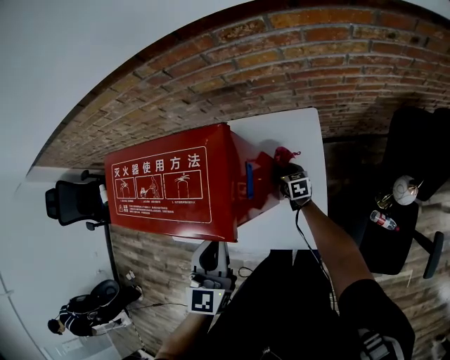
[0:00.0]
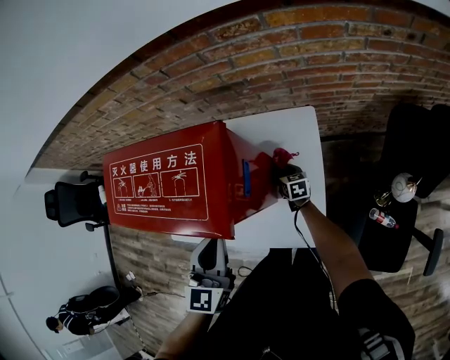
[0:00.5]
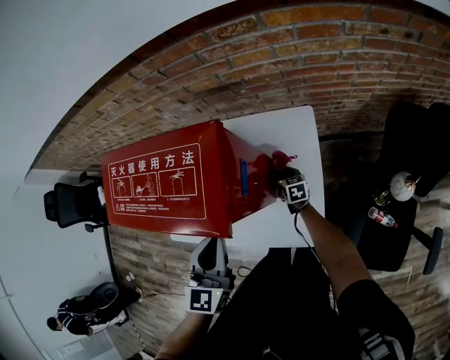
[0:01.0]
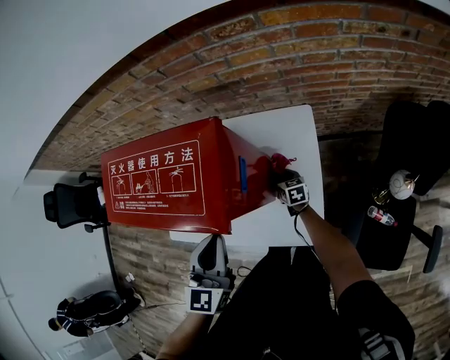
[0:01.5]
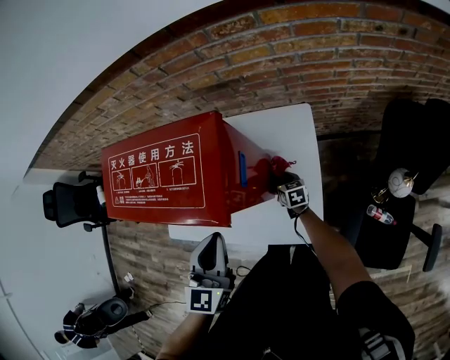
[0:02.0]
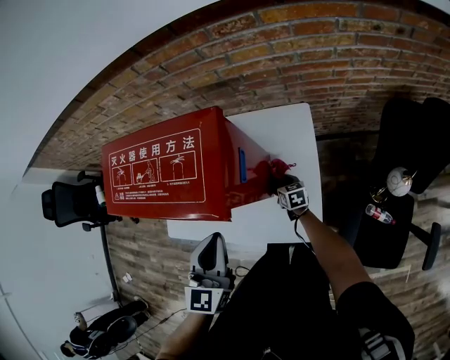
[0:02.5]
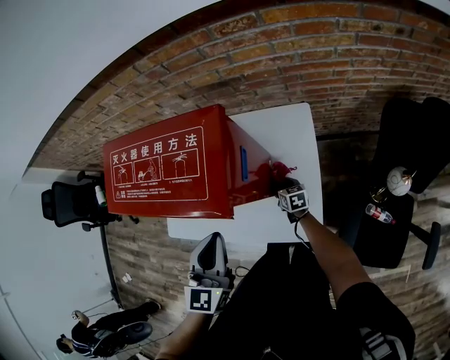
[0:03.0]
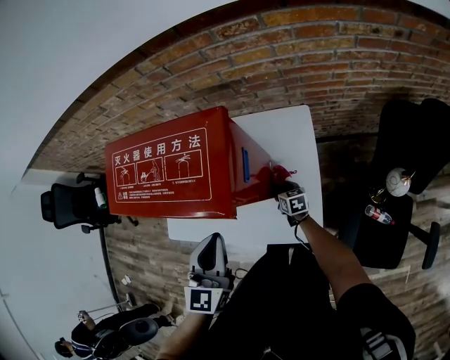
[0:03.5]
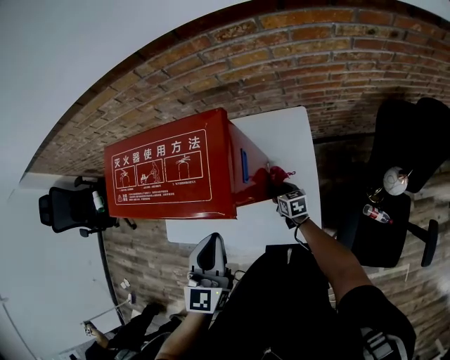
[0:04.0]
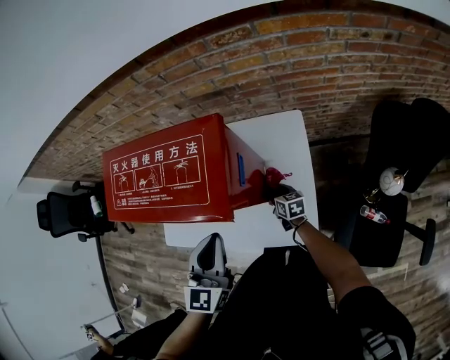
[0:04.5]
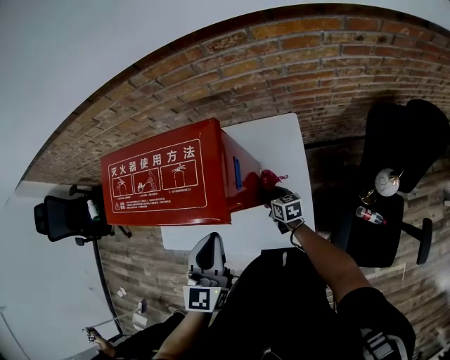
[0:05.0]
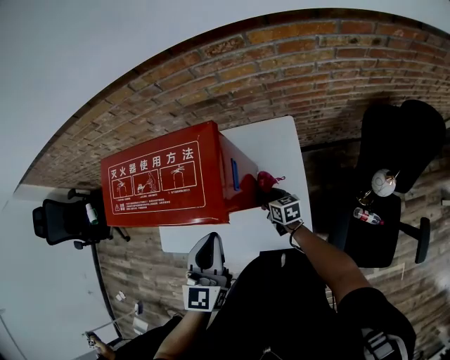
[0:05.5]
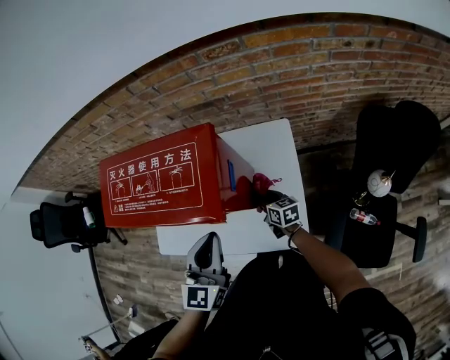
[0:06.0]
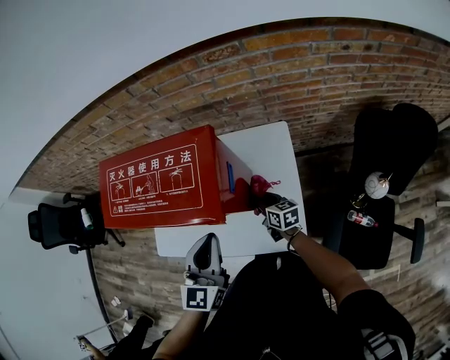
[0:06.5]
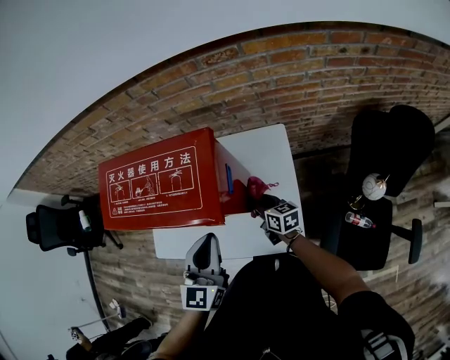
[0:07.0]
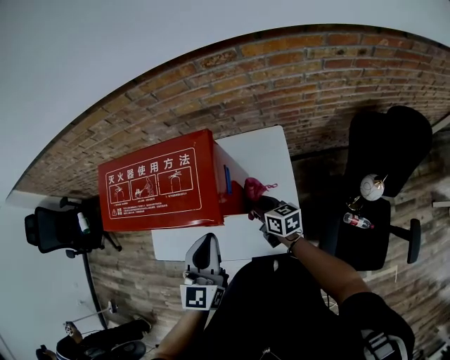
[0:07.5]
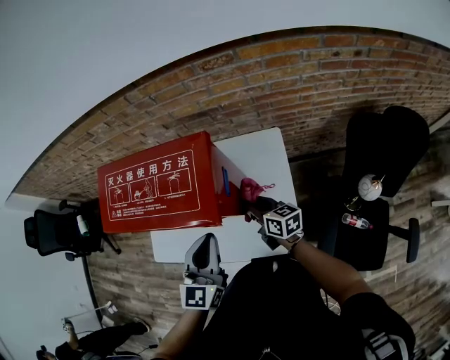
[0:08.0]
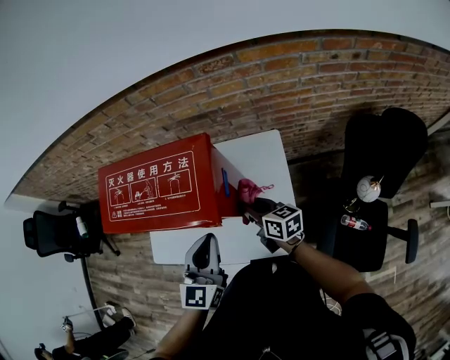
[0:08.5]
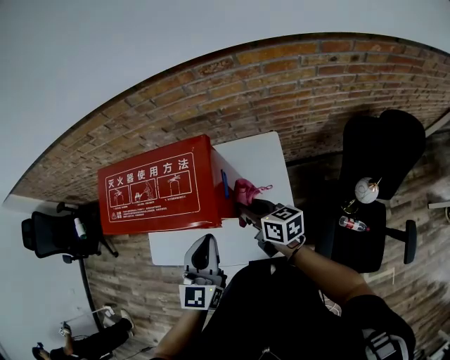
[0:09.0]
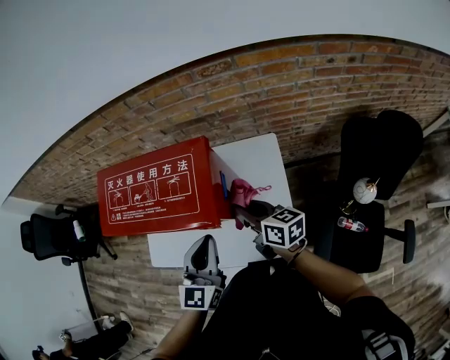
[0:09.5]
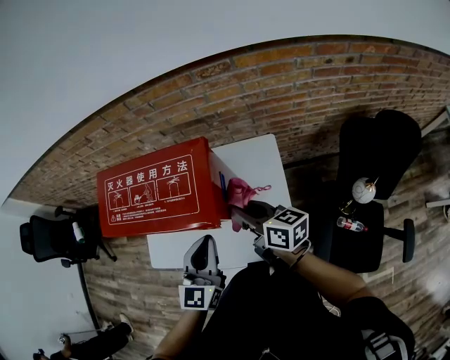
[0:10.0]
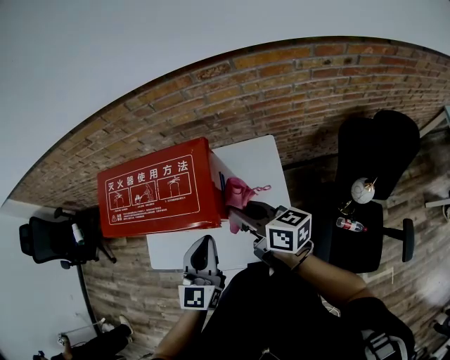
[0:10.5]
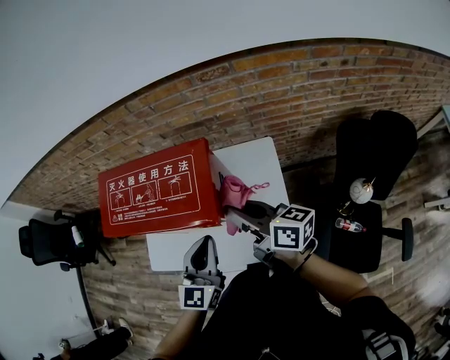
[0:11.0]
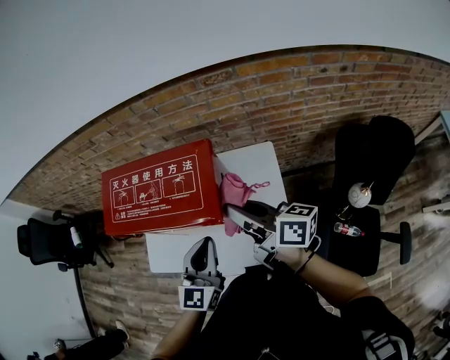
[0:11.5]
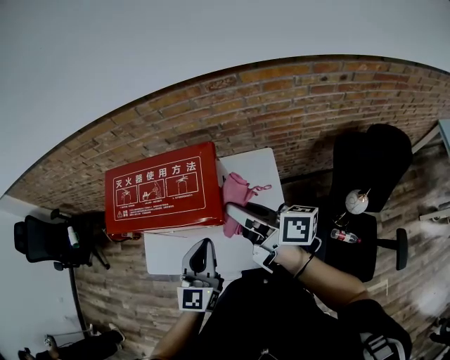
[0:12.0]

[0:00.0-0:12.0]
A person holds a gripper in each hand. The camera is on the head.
0:00.0 to 0:02.0: The right gripper moves backward, about 5 cm.
0:02.0 to 0:04.0: The grippers move only a little.
0:04.0 to 0:06.0: The right gripper is displaced upward by about 10 cm.
0:06.0 to 0:08.0: The right gripper is displaced upward by about 10 cm.
0:08.0 to 0:10.0: The right gripper is displaced upward by about 15 cm.
0:10.0 to 0:12.0: The right gripper shifts some 10 cm upward, and changes its angle by about 20 degrees.

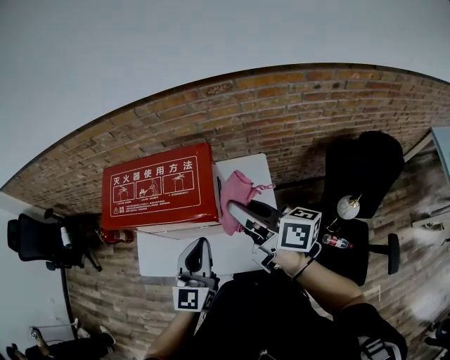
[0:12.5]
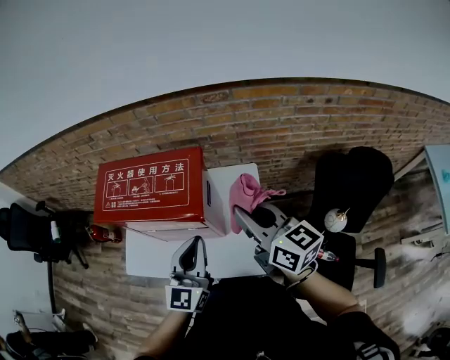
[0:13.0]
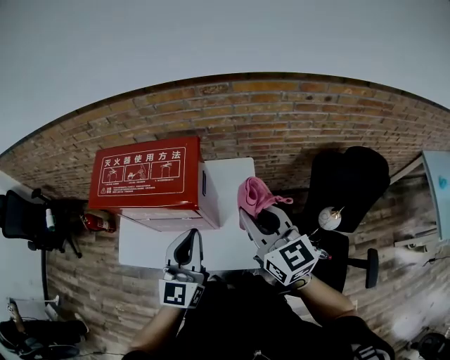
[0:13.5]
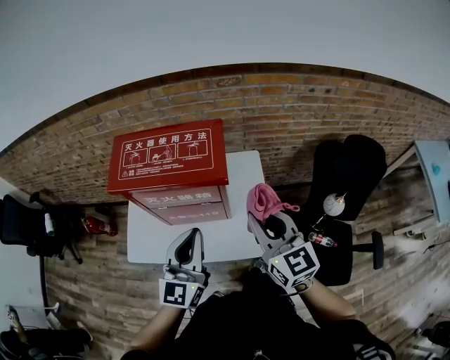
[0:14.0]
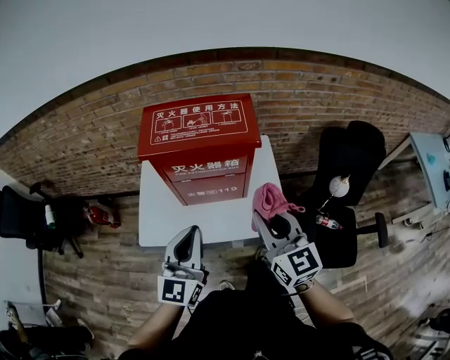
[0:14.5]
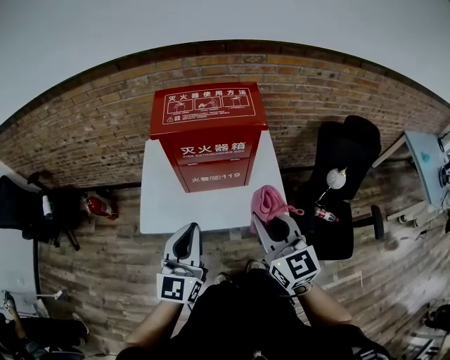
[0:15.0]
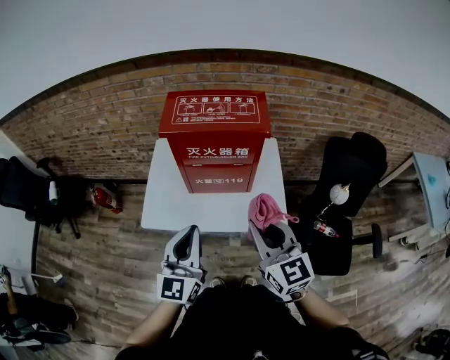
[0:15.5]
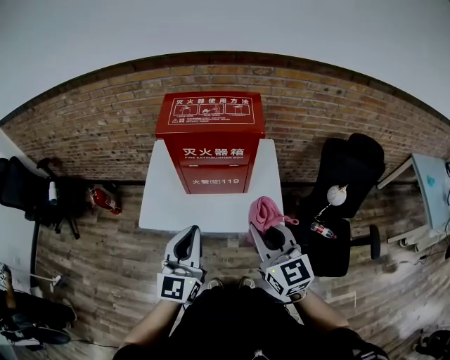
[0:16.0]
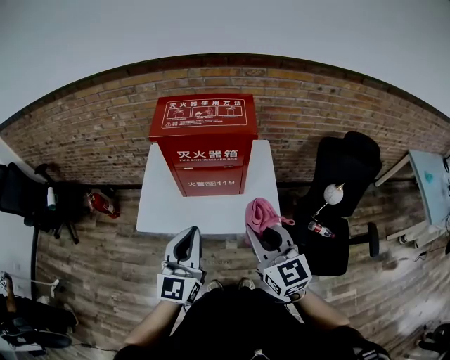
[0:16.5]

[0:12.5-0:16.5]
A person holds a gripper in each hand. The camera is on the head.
0:12.5 to 0:14.5: The right gripper travels backward and to the left by roughly 25 cm, and rolls counterclockwise, seen from behind, by roughly 50 degrees. Meanwhile the left gripper heads to the left and backward, covering some 20 cm.
0:14.5 to 0:16.5: Both grippers travel together backward, about 10 cm.

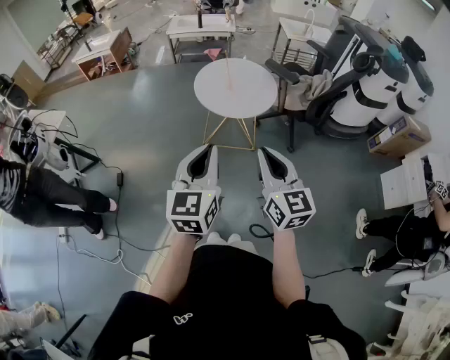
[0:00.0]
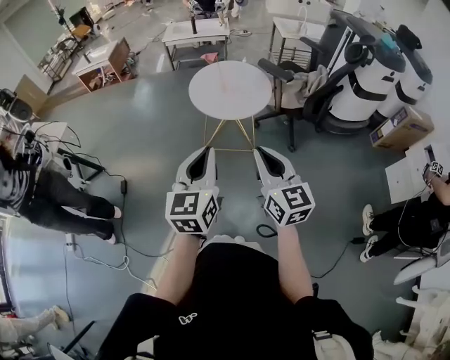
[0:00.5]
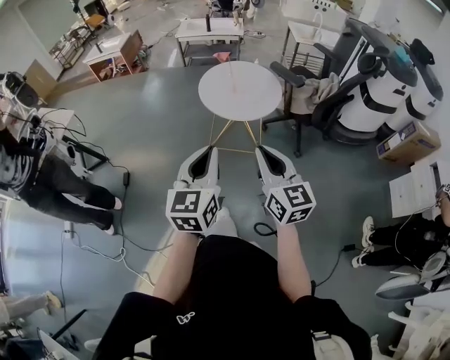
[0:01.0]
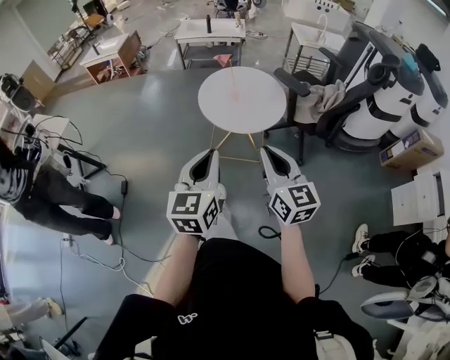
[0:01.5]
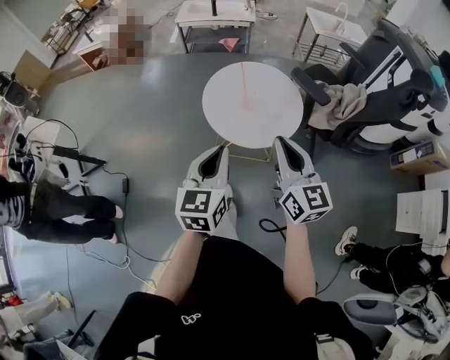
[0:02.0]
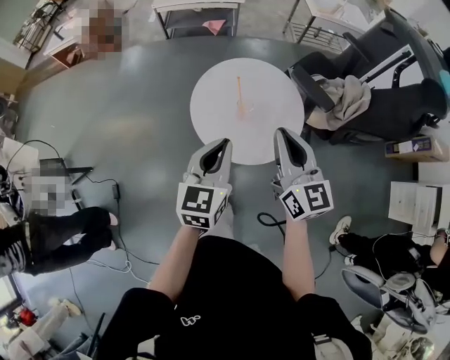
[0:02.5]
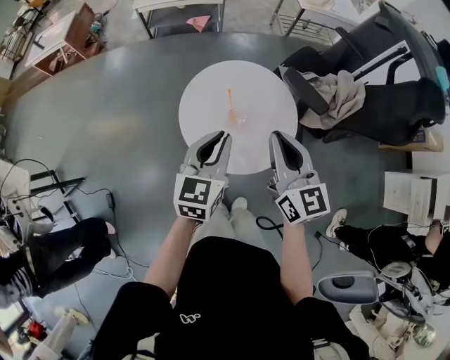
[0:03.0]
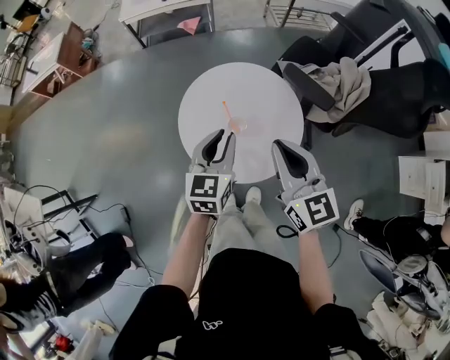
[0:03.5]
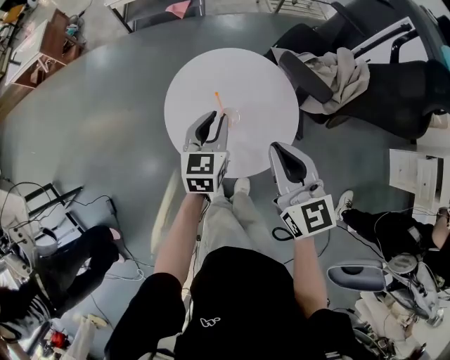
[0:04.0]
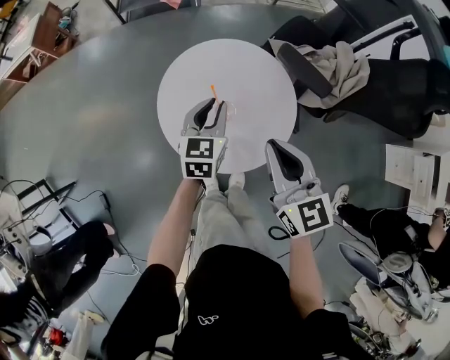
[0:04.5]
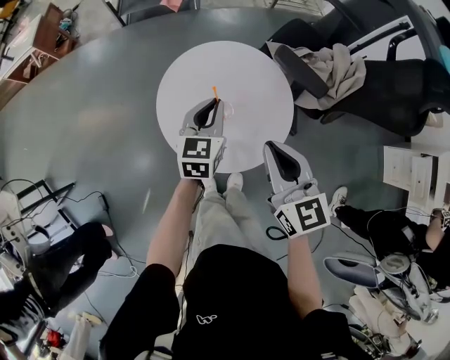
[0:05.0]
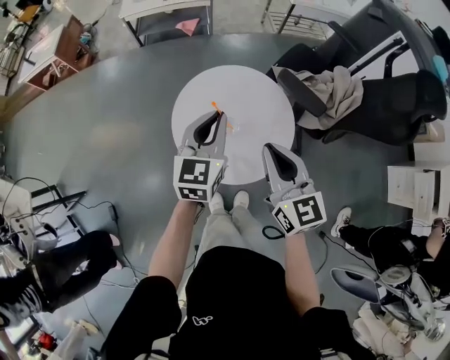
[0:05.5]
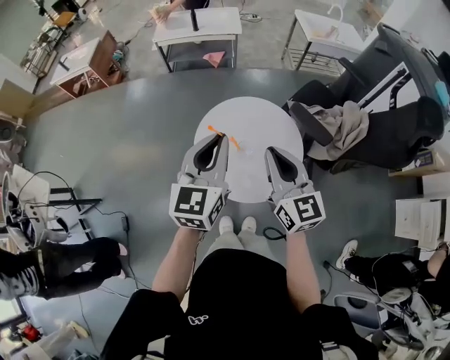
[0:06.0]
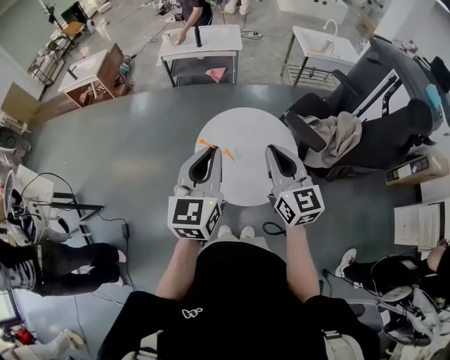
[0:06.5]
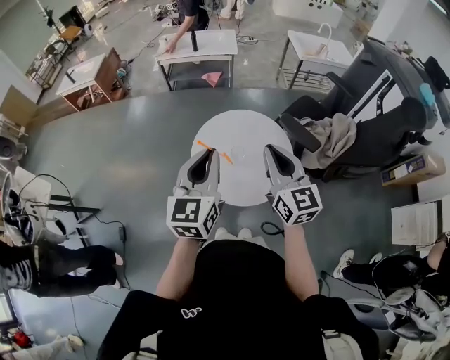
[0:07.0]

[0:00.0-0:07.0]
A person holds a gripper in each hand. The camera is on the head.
0:00.0 to 0:02.0: Both grippers travel together forward, approximately 25 cm.
0:02.0 to 0:03.5: The grippers both shift forward by roughly 25 cm. The left gripper opens.
0:03.5 to 0:05.0: The left gripper is displaced downward and forward by some 10 cm.
0:05.0 to 0:07.0: The left gripper travels upward and backward by approximately 25 cm, and changes its angle by roughly 20 degrees; the right gripper heads upward, covering approximately 10 cm.

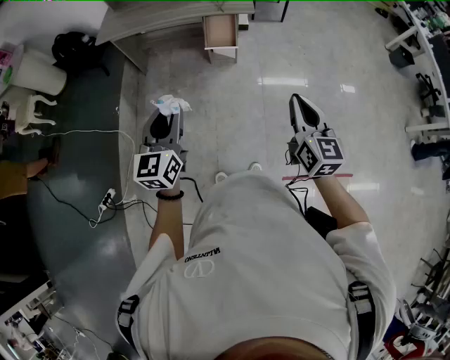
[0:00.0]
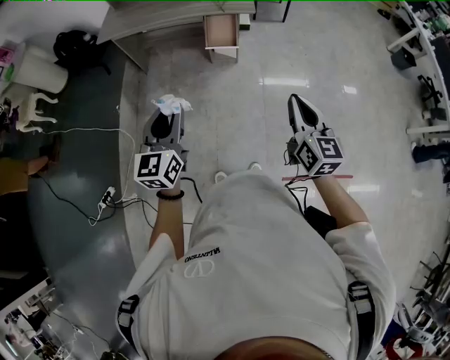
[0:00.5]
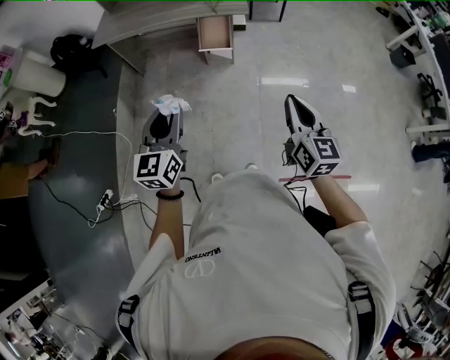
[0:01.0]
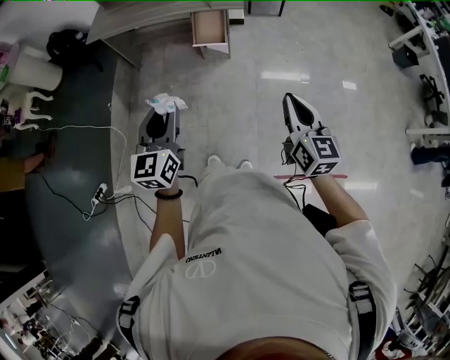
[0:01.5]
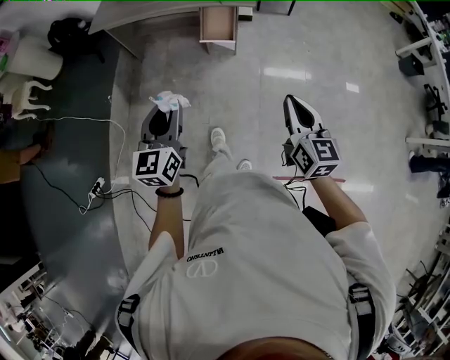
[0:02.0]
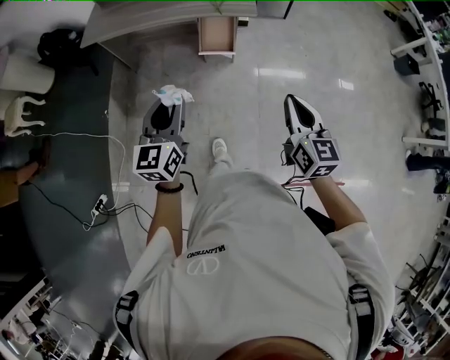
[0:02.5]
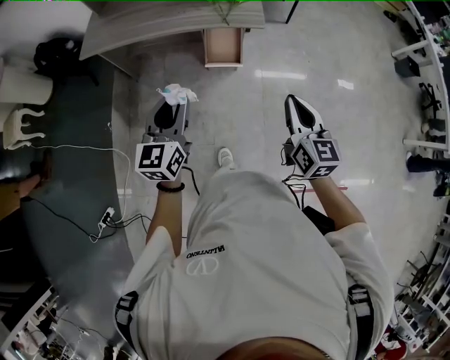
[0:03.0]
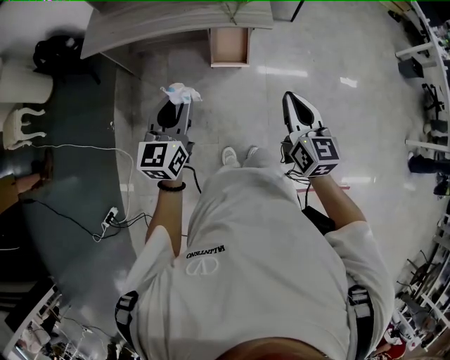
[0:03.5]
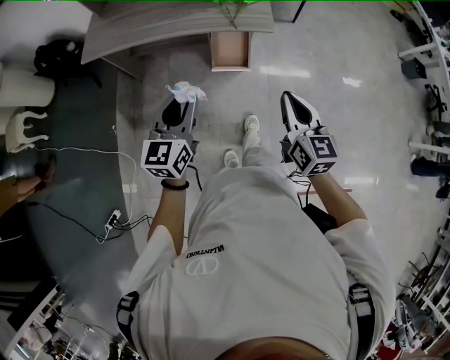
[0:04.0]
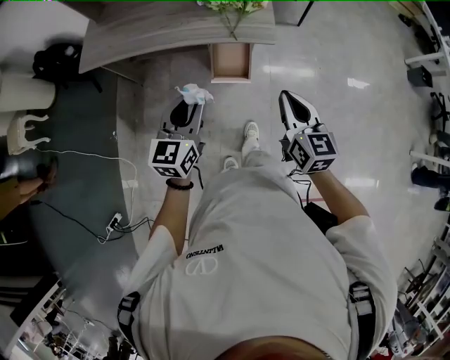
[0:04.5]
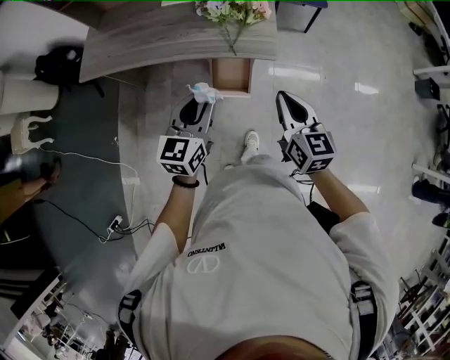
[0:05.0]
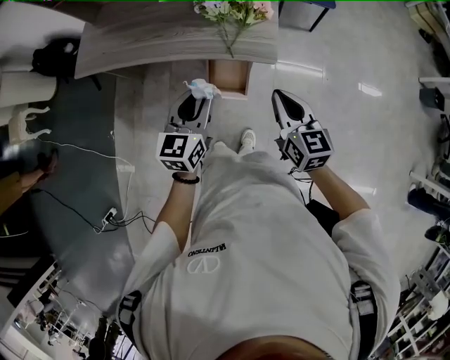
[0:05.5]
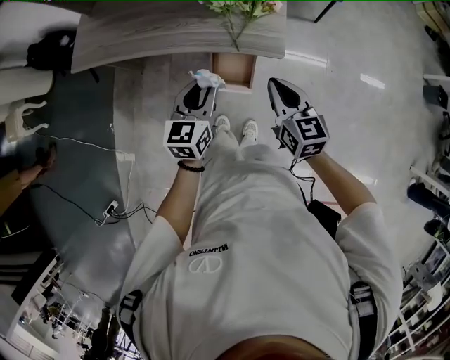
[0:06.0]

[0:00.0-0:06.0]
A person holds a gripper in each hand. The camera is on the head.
0:00.0 to 0:02.0: The right gripper goes some 5 cm forward. Meanwhile the left gripper is displaced to the right by roughly 5 cm.
0:02.0 to 0:04.0: The right gripper is displaced forward and to the left by roughly 25 cm; the left gripper shifts about 25 cm forward.
0:04.0 to 0:06.0: The right gripper goes roughly 25 cm forward, while the left gripper moves forward, downward and to the right, approximately 30 cm.
